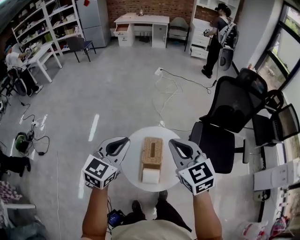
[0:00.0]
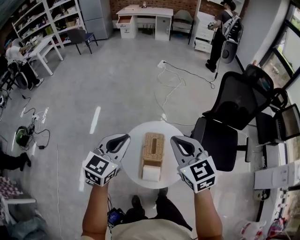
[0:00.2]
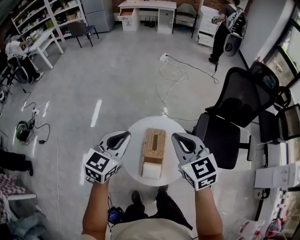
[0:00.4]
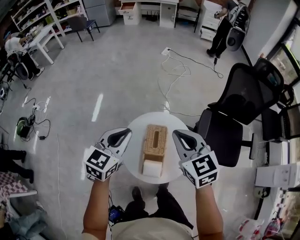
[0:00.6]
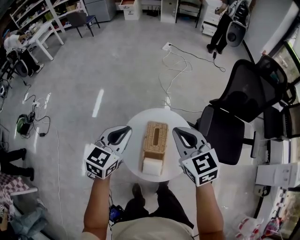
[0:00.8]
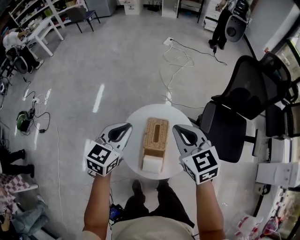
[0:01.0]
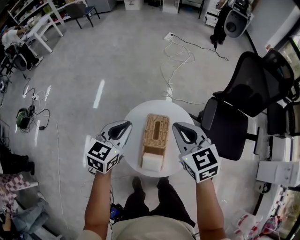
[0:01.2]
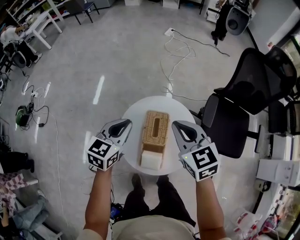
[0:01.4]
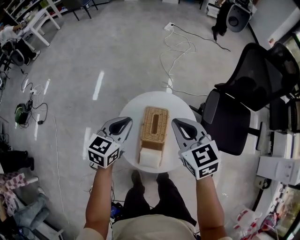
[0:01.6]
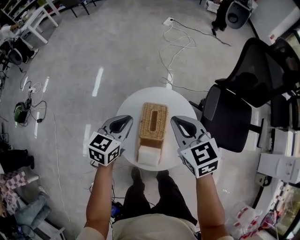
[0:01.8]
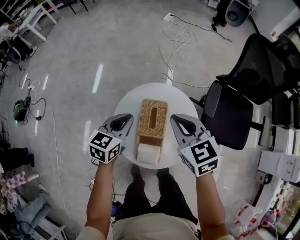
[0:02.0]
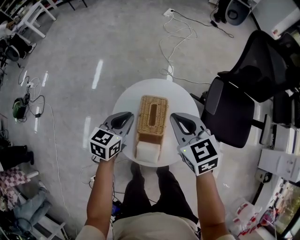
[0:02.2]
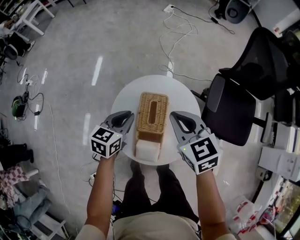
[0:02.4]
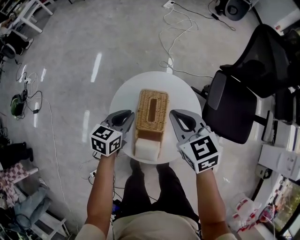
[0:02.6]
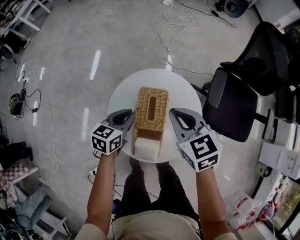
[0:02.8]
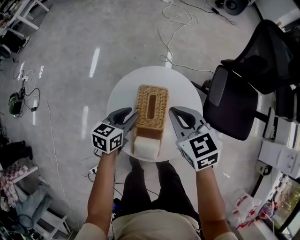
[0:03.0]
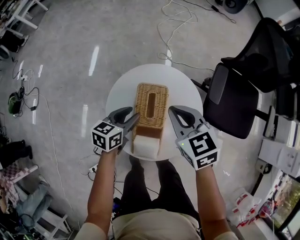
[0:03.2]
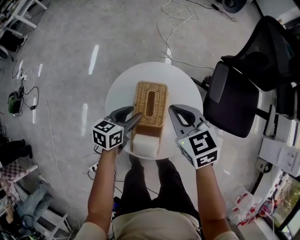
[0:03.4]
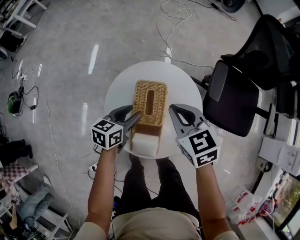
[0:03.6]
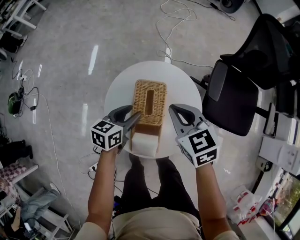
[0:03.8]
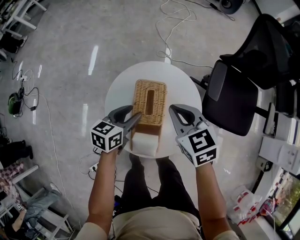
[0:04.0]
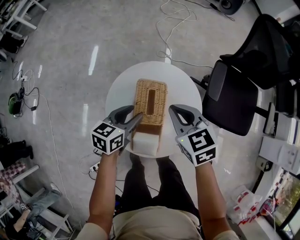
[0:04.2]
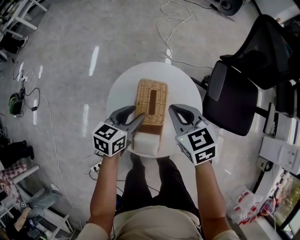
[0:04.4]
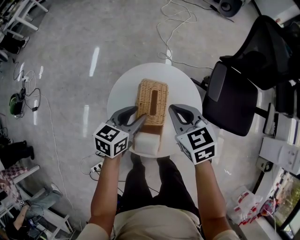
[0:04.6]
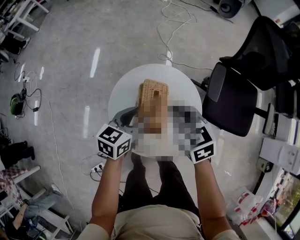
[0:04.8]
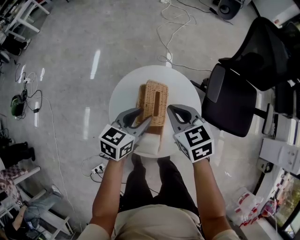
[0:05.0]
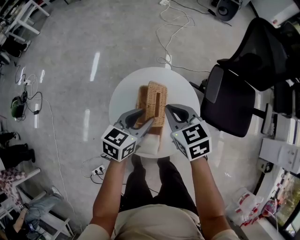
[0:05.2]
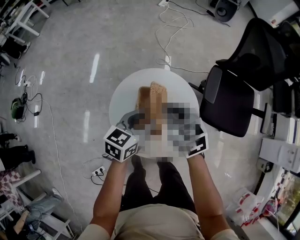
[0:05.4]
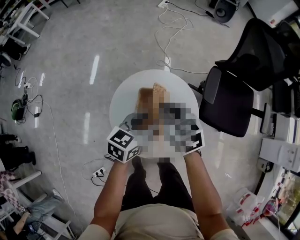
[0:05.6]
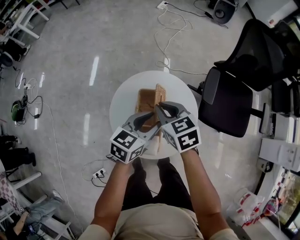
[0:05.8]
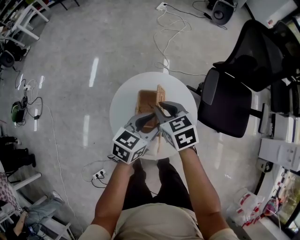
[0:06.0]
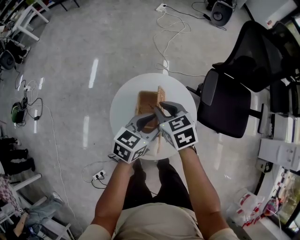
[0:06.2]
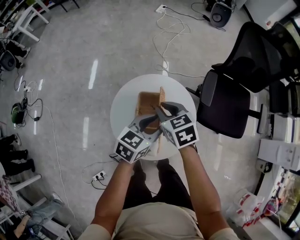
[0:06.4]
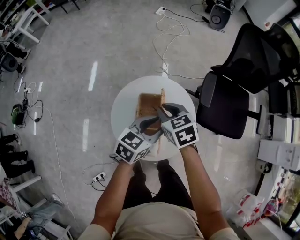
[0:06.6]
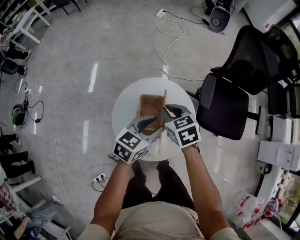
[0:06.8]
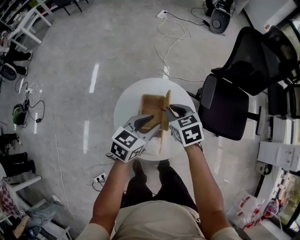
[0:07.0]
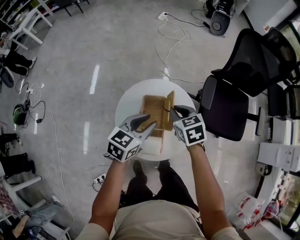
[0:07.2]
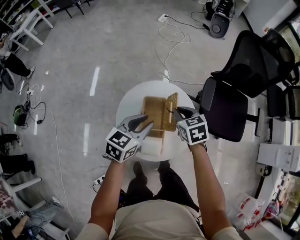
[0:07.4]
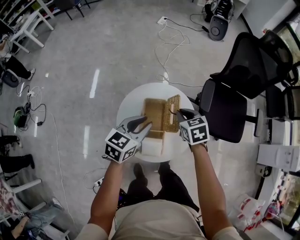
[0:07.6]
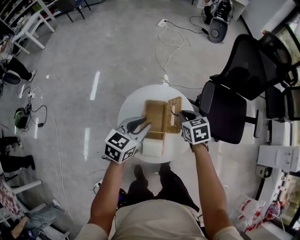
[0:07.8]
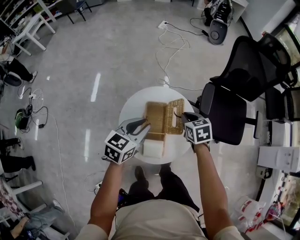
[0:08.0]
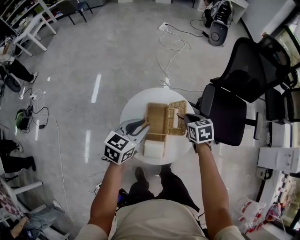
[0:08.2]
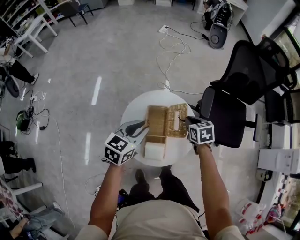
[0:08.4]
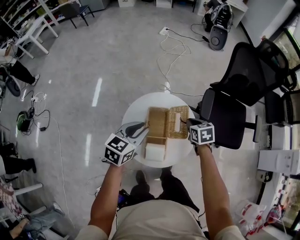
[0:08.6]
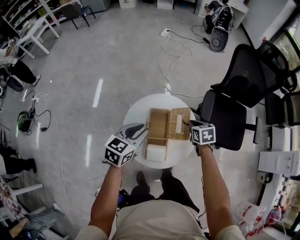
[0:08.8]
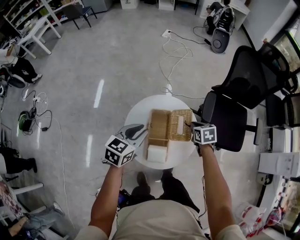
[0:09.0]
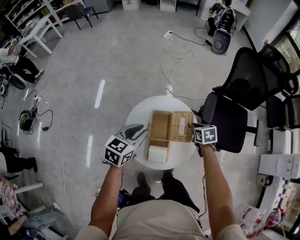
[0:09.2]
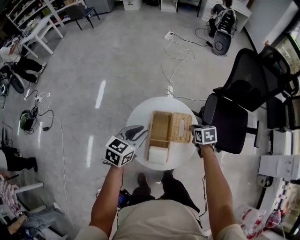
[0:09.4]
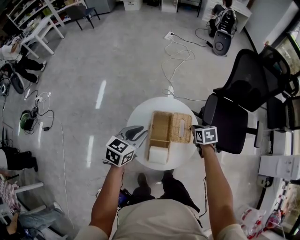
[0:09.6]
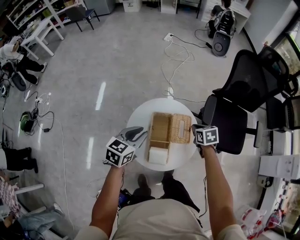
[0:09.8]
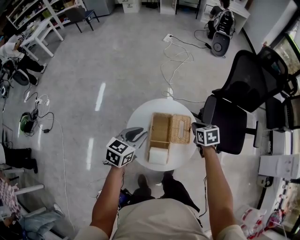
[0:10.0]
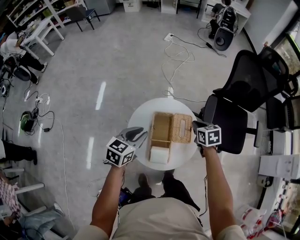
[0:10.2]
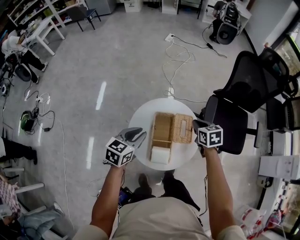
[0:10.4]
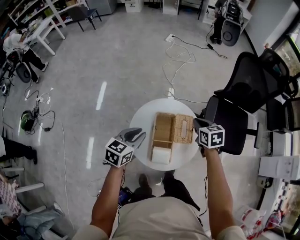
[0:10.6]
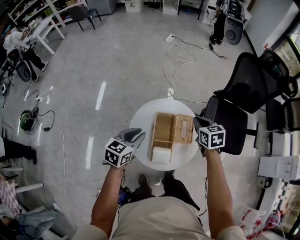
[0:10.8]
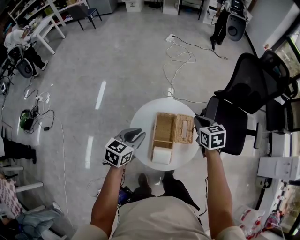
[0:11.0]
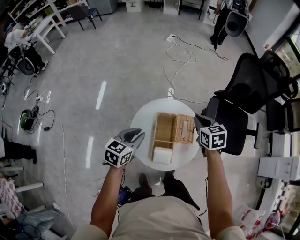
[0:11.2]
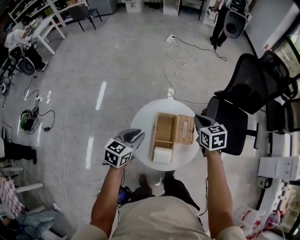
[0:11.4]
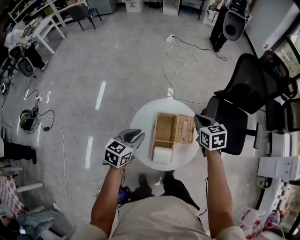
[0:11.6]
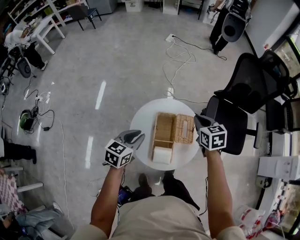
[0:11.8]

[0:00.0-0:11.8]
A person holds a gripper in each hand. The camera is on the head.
0:00.0 to 0:01.4: The left gripper shifts some 20 cm downward. The right gripper is displaced downward and forward by some 15 cm.
0:01.4 to 0:03.0: Both grippers travel together downward, approximately 15 cm. The left gripper rotates roughly 20 degrees, and opens.
0:03.0 to 0:04.4: There are only small adjustments of the grippers.
0:04.4 to 0:06.0: The left gripper is displaced to the right and upward by roughly 10 cm.
0:06.0 to 0:07.4: The right gripper travels to the right by roughly 5 cm, while the left gripper shifts some 5 cm to the left.
0:07.4 to 0:08.8: The left gripper shifts by roughly 5 cm. The right gripper heads to the right, covering roughly 5 cm.
0:08.8 to 0:10.4: The right gripper shifts some 5 cm upward.
0:10.4 to 0:11.8: The right gripper moves upward, approximately 5 cm.

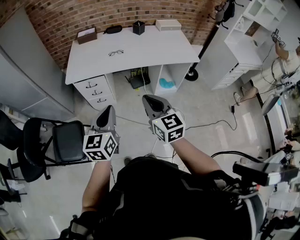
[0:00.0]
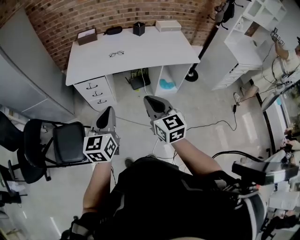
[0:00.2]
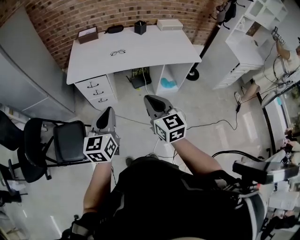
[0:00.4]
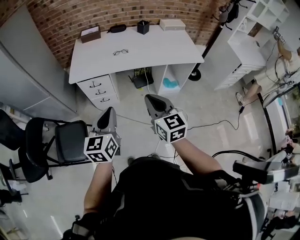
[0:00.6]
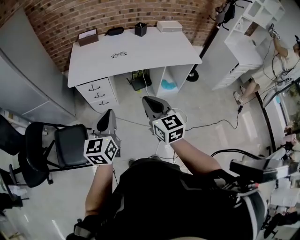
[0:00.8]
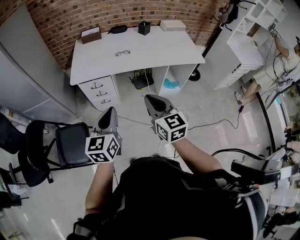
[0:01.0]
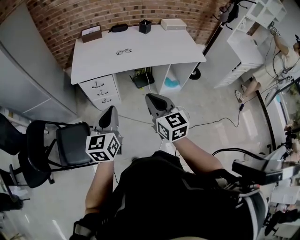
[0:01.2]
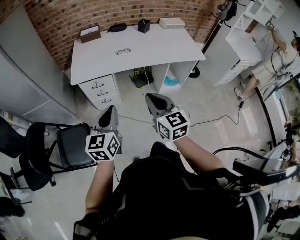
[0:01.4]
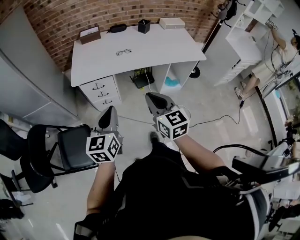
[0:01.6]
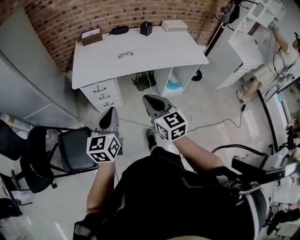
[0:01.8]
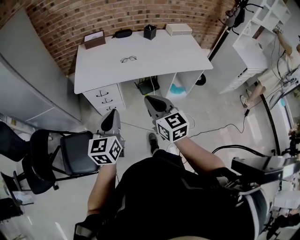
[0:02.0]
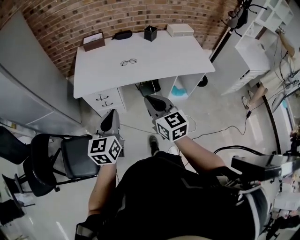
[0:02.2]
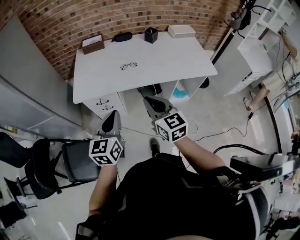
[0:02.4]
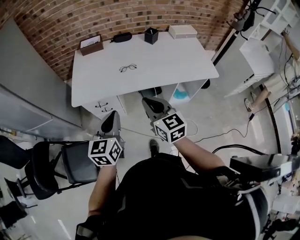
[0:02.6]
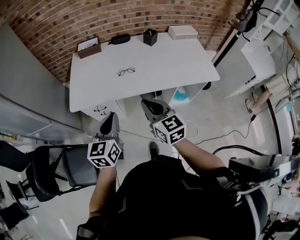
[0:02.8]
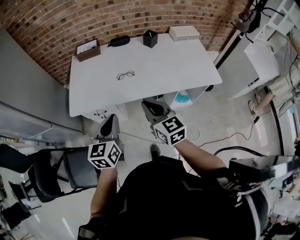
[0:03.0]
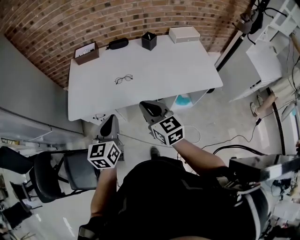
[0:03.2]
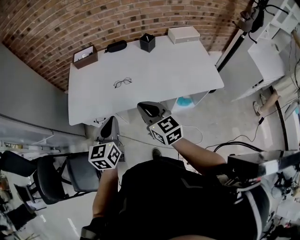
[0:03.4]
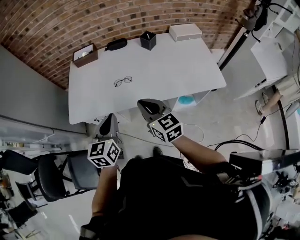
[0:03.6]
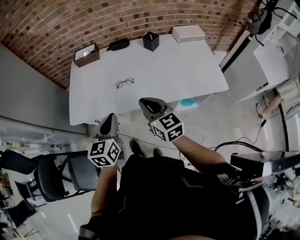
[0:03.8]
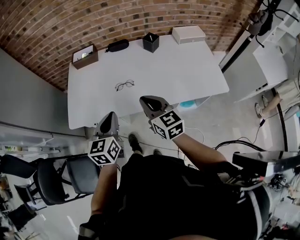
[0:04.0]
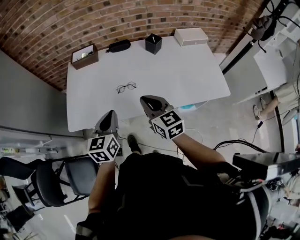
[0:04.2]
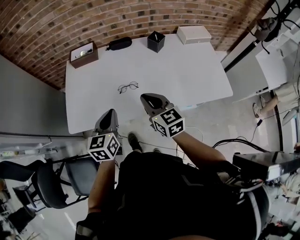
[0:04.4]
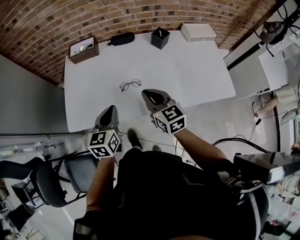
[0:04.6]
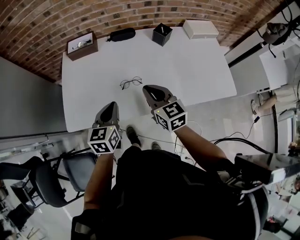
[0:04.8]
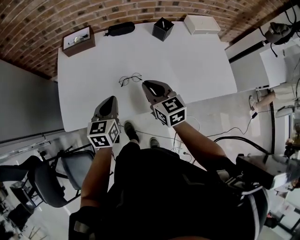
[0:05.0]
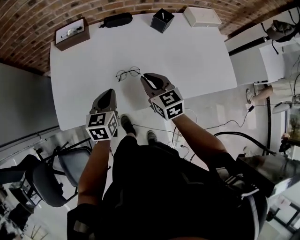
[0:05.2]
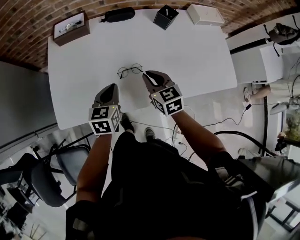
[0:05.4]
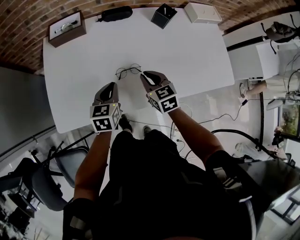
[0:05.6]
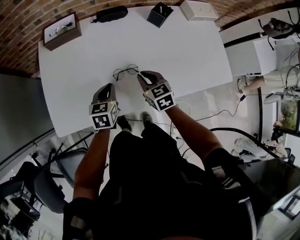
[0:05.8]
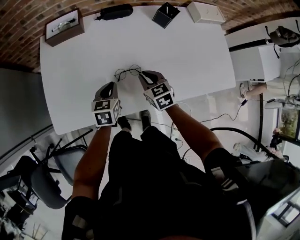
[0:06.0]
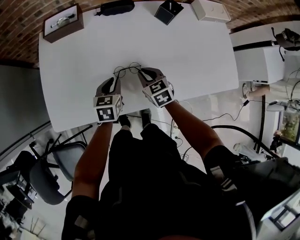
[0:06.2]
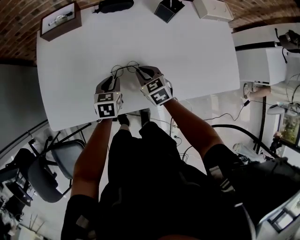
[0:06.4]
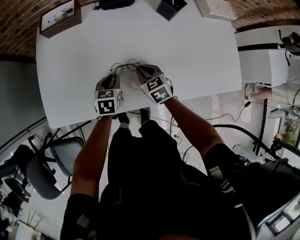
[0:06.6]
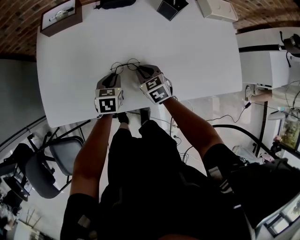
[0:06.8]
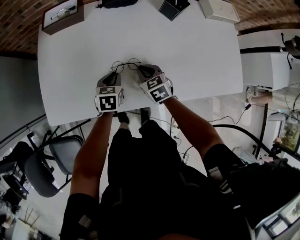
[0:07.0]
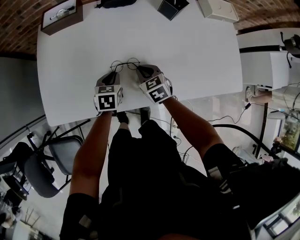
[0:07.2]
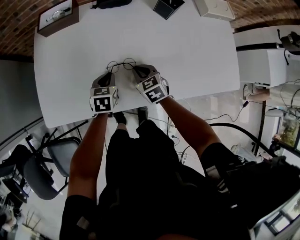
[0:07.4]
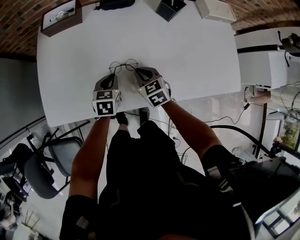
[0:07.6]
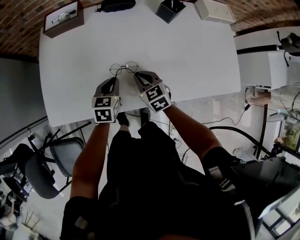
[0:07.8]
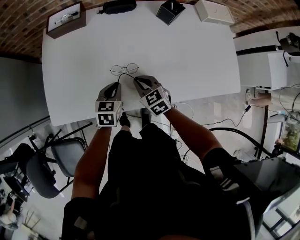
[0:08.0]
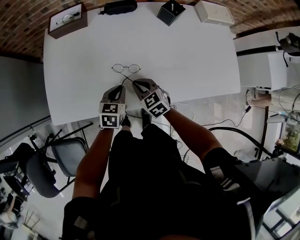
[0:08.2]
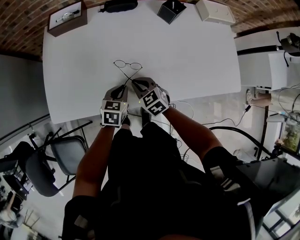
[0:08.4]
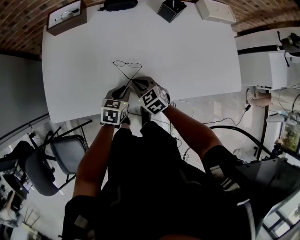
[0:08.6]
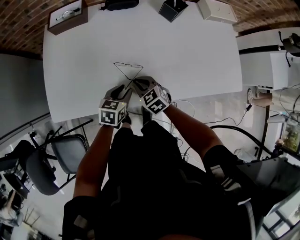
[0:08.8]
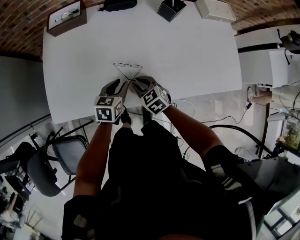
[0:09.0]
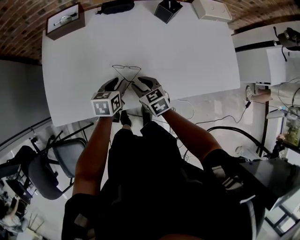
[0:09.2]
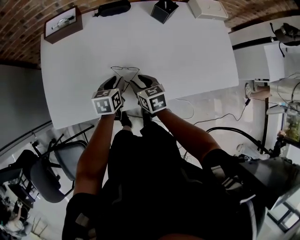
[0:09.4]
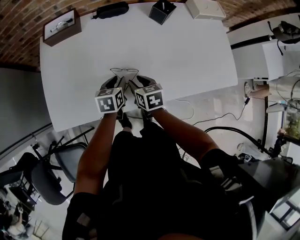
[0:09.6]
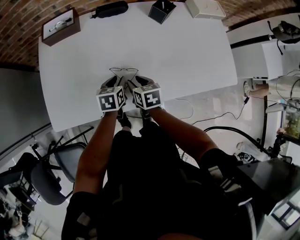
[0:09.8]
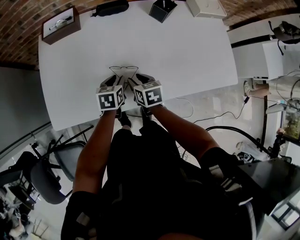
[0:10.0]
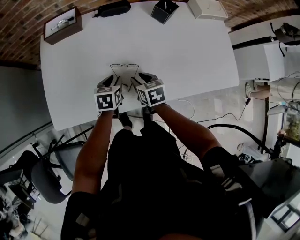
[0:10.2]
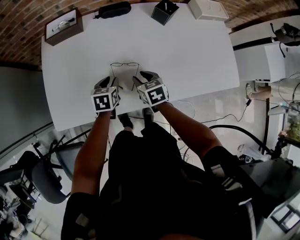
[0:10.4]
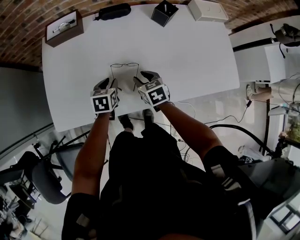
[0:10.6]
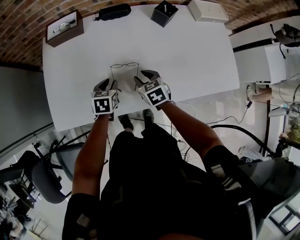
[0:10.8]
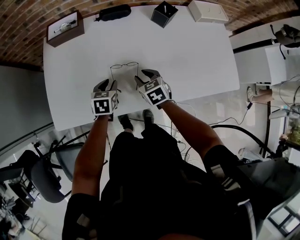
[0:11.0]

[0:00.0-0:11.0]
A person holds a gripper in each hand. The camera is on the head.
0:00.0 to 0:01.6: The two grippers go roughly 10 cm to the left.
0:01.6 to 0:03.2: The left gripper shifts roughly 30 cm forward and to the right; the right gripper travels forward by some 25 cm.
0:03.2 to 0:04.8: The left gripper goes about 20 cm forward and downward, while the right gripper is displaced forward by approximately 20 cm.
0:04.8 to 0:06.2: The two grippers go some 20 cm downward and forward. The right gripper rotates approximately 20 degrees.
0:06.2 to 0:07.8: There are only small adjustments of the grippers.
0:07.8 to 0:09.4: The left gripper opens its fingers. Meanwhile the right gripper turns by some 20 degrees, and opens up.
0:09.4 to 0:11.0: There are only small adjustments of the grippers.

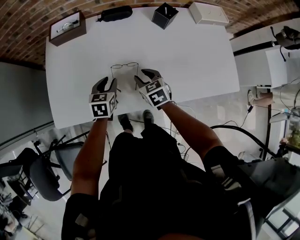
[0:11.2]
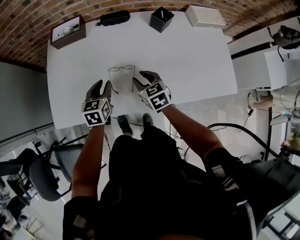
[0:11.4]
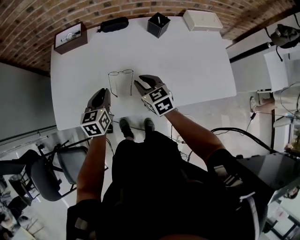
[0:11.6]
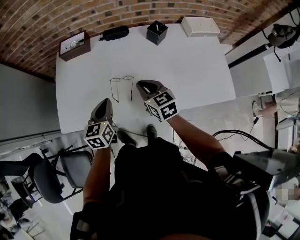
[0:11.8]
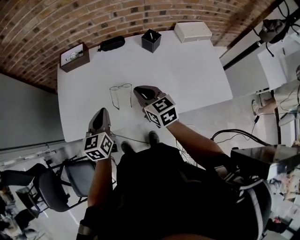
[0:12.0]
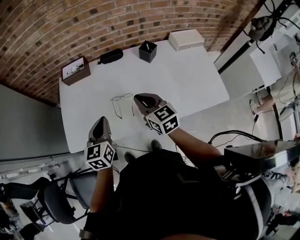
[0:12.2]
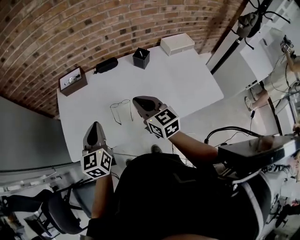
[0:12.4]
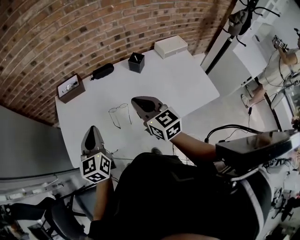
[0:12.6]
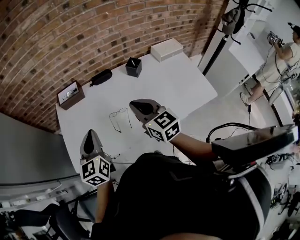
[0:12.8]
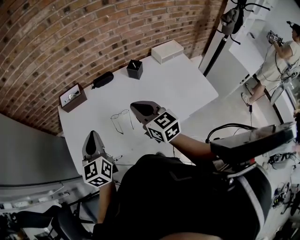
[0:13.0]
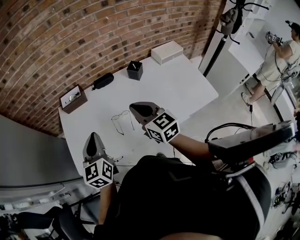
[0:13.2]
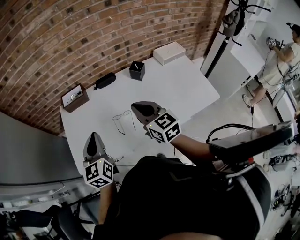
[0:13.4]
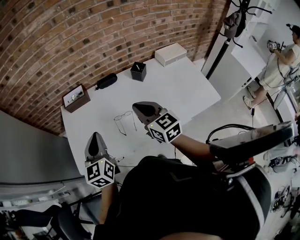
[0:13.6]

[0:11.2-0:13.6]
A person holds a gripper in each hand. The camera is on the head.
0:11.2 to 0:12.4: The grippers both shift upward by about 25 cm. The left gripper rotates some 30 degrees, and closes up; the right gripper swivels approximately 30 degrees, and closes its fingers.
0:12.4 to 0:13.6: The right gripper is displaced upward by roughly 5 cm.
